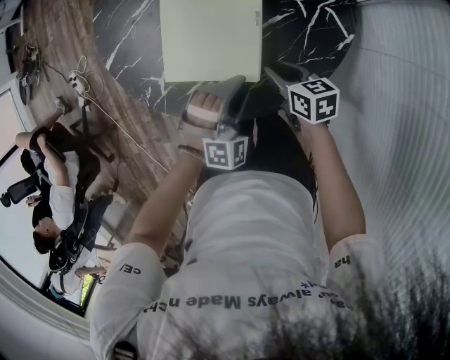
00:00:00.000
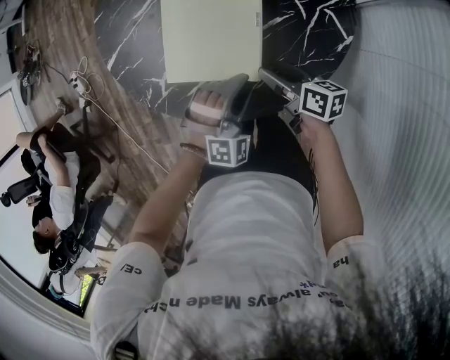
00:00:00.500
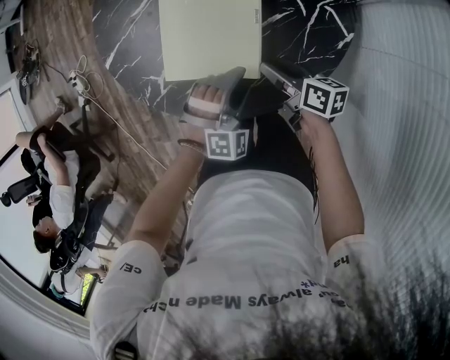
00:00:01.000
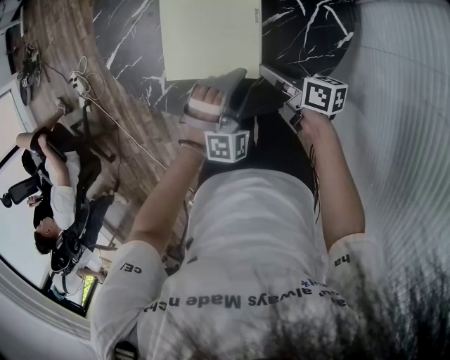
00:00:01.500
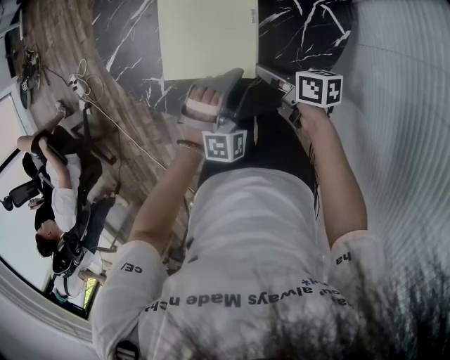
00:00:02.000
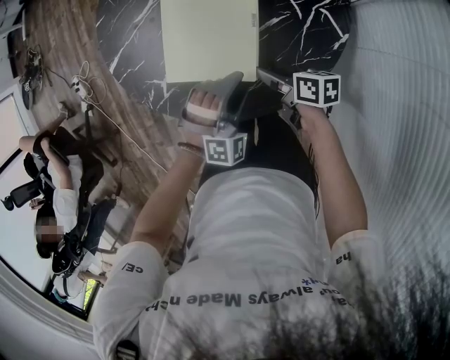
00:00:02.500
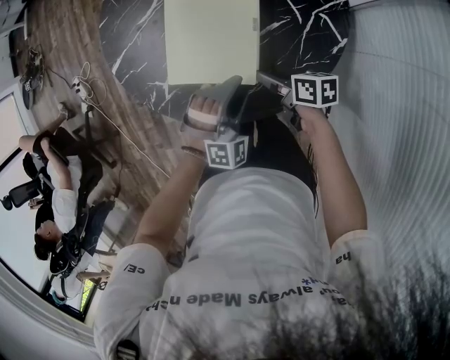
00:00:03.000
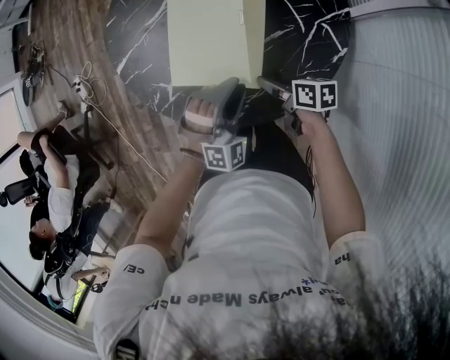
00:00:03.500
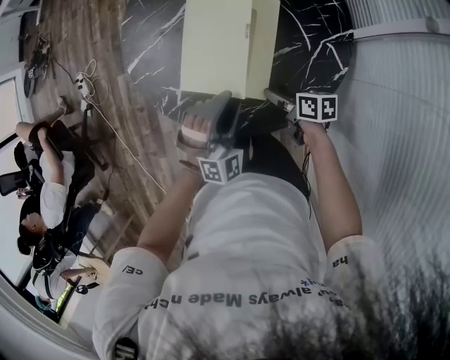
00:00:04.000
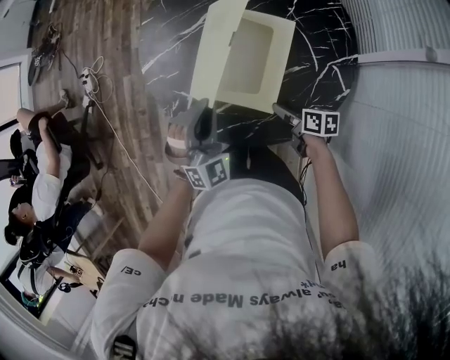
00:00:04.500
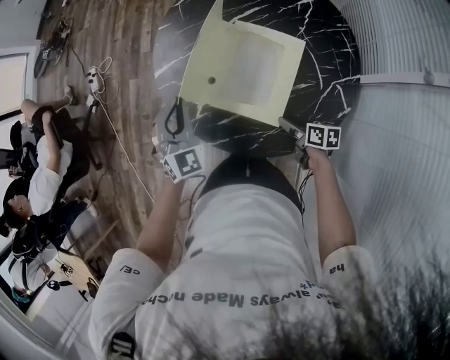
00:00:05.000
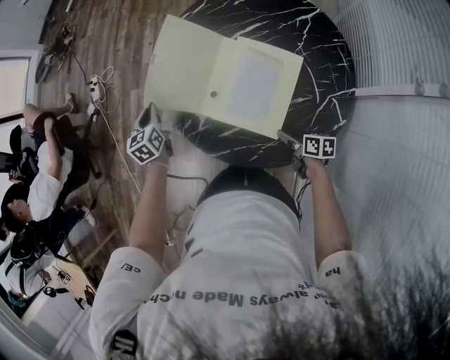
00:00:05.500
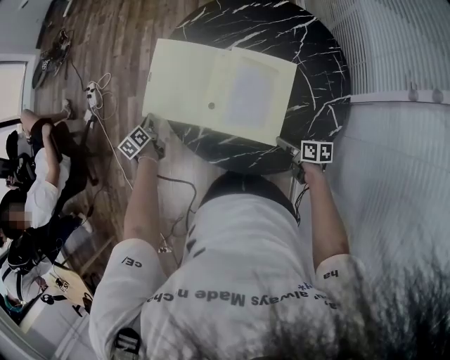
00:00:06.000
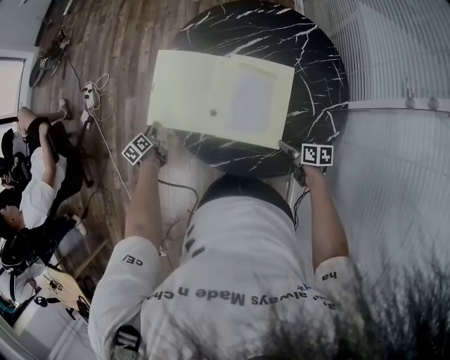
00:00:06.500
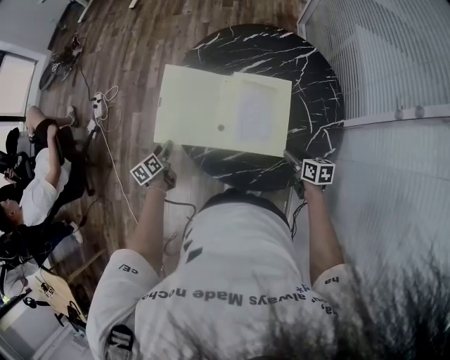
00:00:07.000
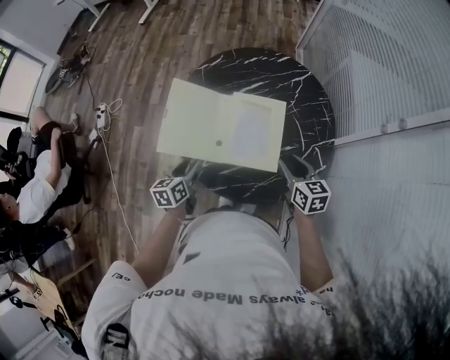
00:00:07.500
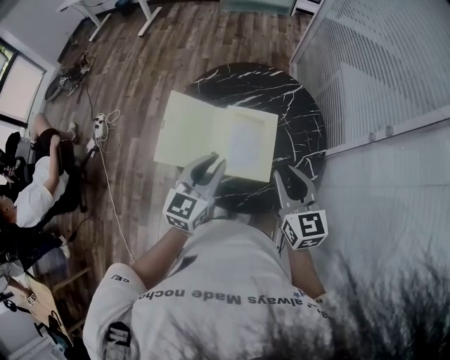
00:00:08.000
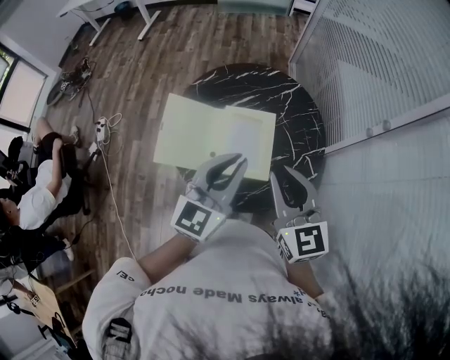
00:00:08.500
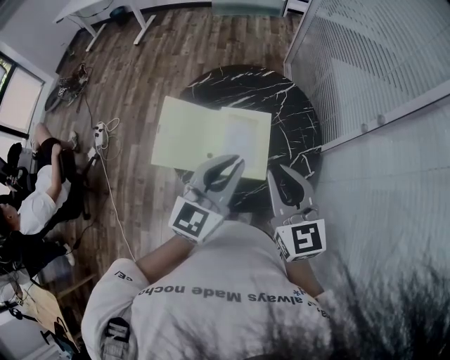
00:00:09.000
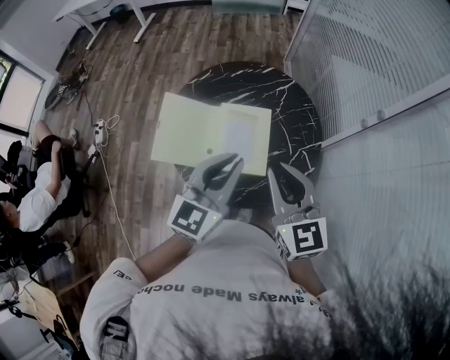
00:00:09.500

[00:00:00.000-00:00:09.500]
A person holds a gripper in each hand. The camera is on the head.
00:00:00.000 to 00:00:02.000: The right gripper opens its fingers.
00:00:02.000 to 00:00:04.000: The left gripper goes about 10 cm upward.
00:00:04.000 to 00:00:05.500: The left gripper is displaced to the left and forward by roughly 40 cm, rotates around the line of its fingers by roughly 80 degrees, counterclockwise from behind, and closes.
00:00:05.500 to 00:00:07.500: The right gripper travels upward by roughly 25 cm, swivels some 40 degrees, and closes its fingers. Meanwhile the left gripper moves some 15 cm downward and comes back, rotates roughly 30 degrees, and opens.
00:00:07.500 to 00:00:09.500: The left gripper moves upward and to the right, approximately 35 cm, turns by roughly 50 degrees, and closes, while the right gripper goes approximately 25 cm upward, turns by about 30 degrees, and closes.

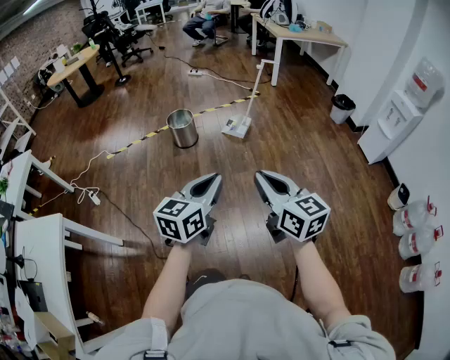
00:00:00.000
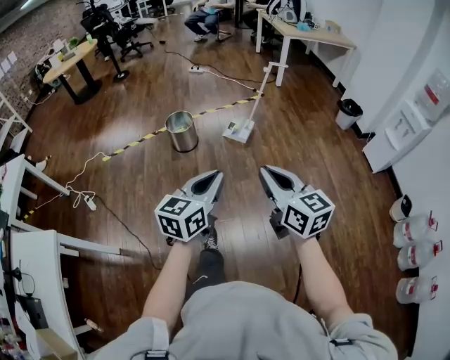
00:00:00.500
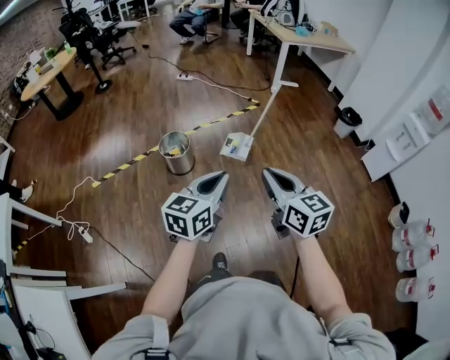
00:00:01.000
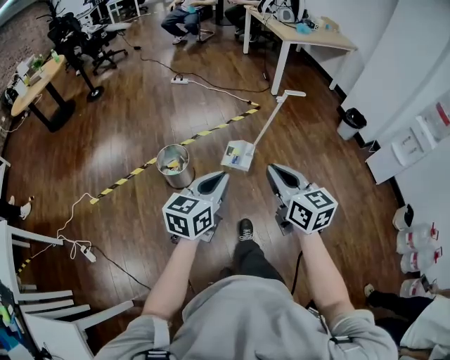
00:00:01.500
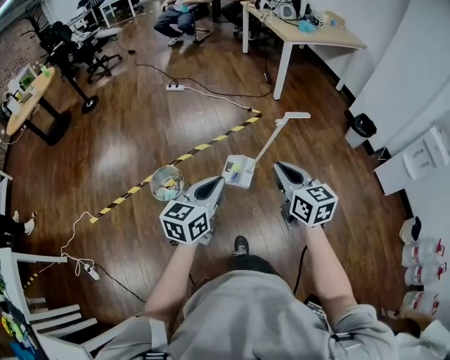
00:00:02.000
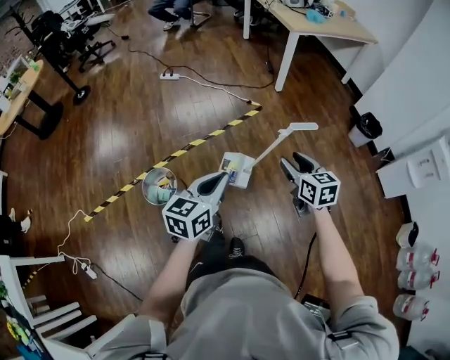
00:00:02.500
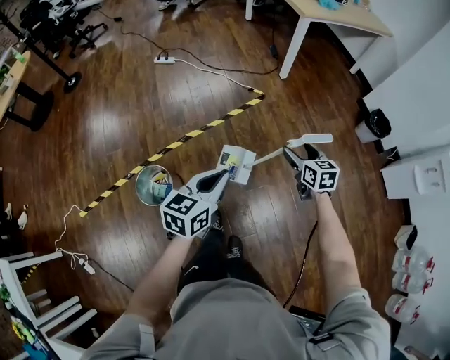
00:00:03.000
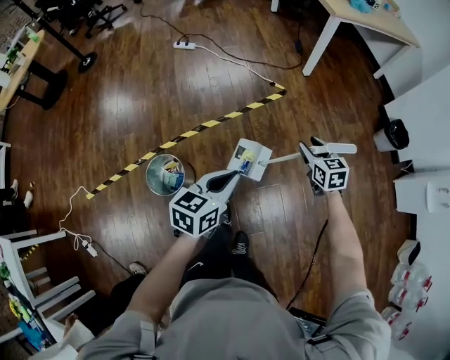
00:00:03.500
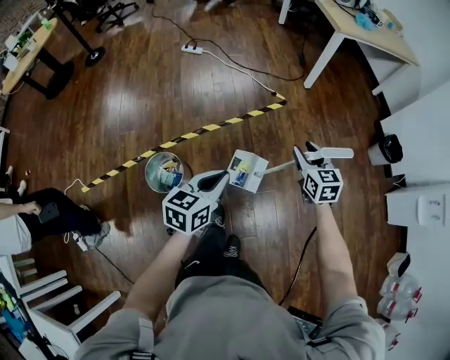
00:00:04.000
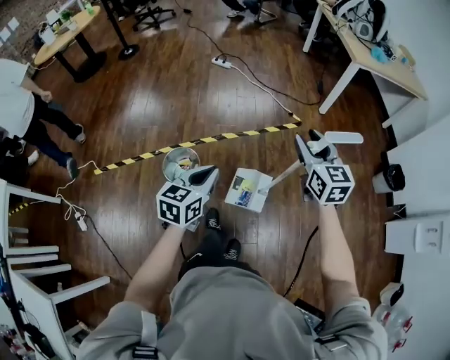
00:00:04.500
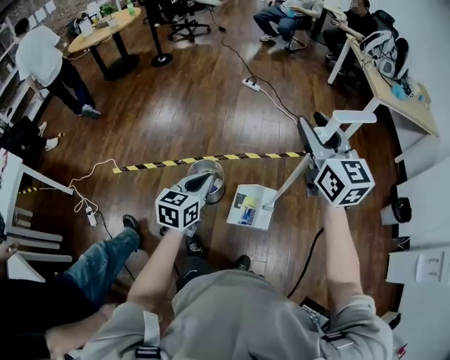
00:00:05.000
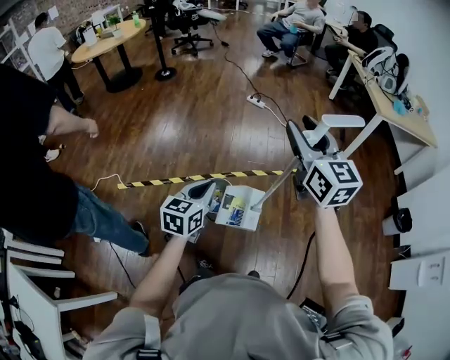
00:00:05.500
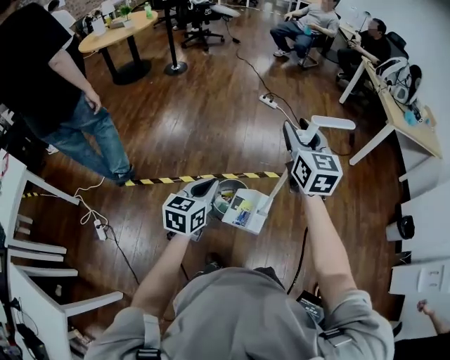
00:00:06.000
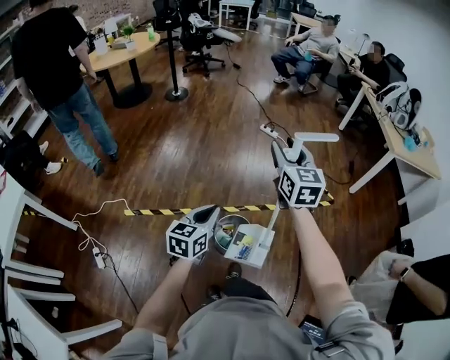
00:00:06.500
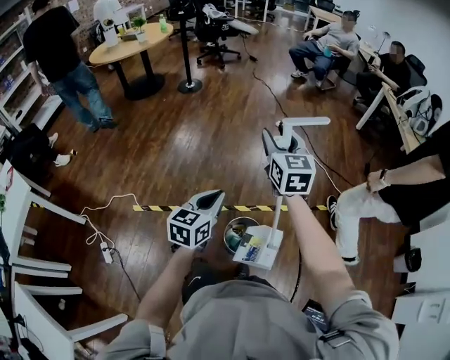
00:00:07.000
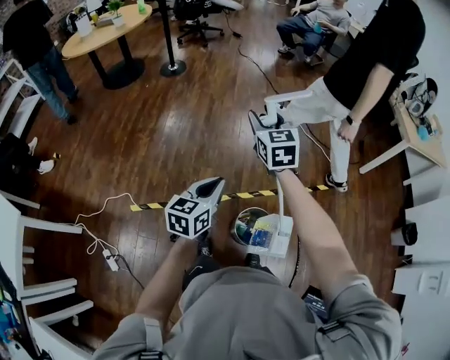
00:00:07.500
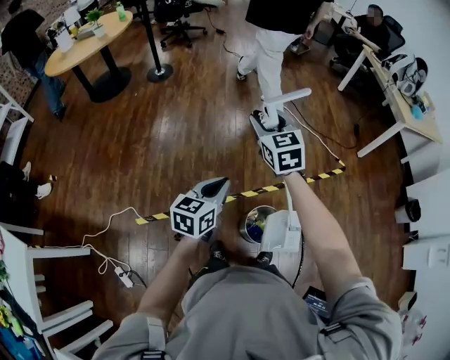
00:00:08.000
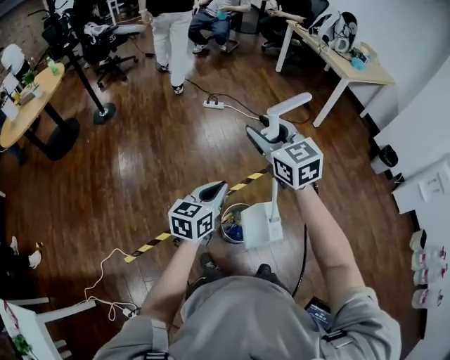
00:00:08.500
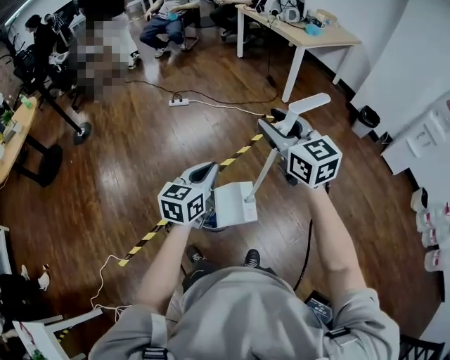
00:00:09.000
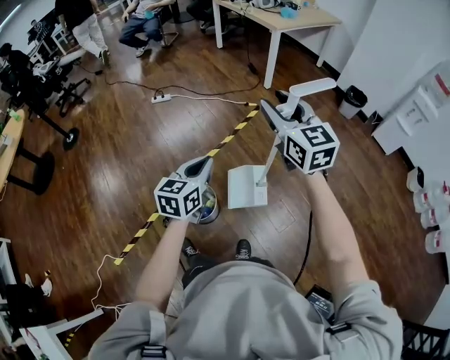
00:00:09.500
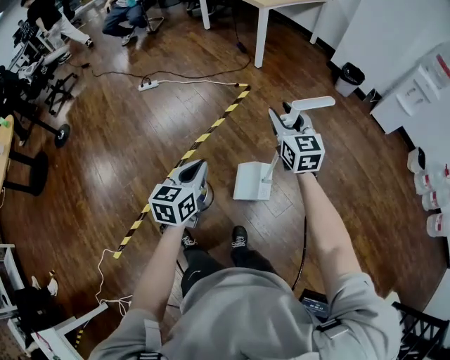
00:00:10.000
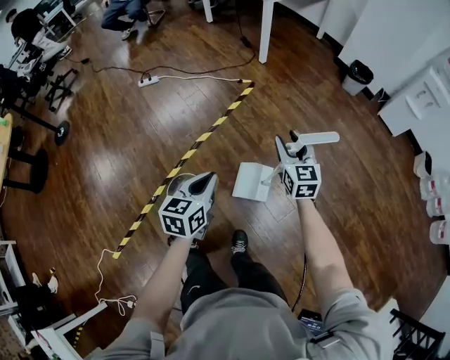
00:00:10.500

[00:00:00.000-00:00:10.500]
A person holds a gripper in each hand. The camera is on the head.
00:00:00.000 to 00:00:02.000: The two grippers travel together, forward, some 70 cm.
00:00:02.000 to 00:00:04.000: Both grippers travel together forward and downward, some 30 cm. The right gripper opens its fingers.
00:00:04.000 to 00:00:06.500: The pair of grippers is taken to the left, approximately 50 cm. The left gripper turns by approximately 30 degrees; the right gripper goes some 30 cm upward, and changes its angle by about 30 degrees.
00:00:06.500 to 00:00:08.500: The right gripper heads forward, covering roughly 5 cm, and goes to the left and returns, some 25 cm each way, while the left gripper is displaced forward by some 15 cm, goes to the left and returns, about 20 cm each way, and swivels some 30 degrees.
00:00:08.500 to 00:00:10.500: The right gripper heads to the right and downward, covering some 60 cm, and changes its angle by some 40 degrees. Meanwhile the left gripper shifts approximately 40 cm to the right.

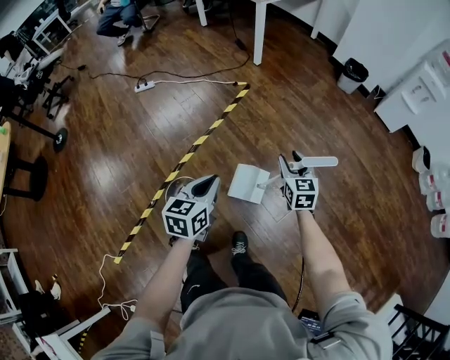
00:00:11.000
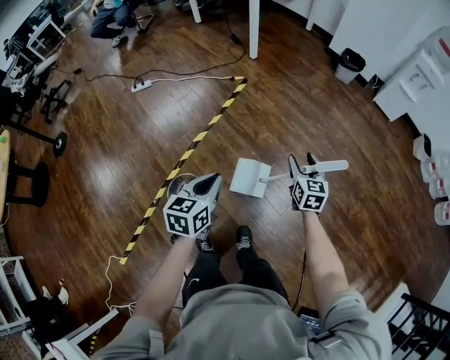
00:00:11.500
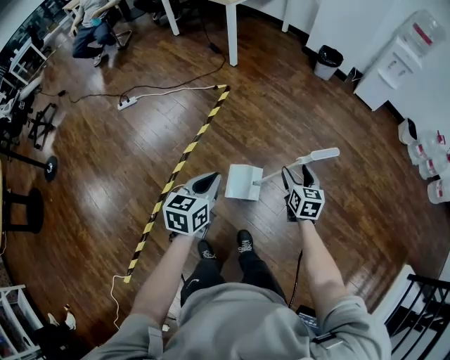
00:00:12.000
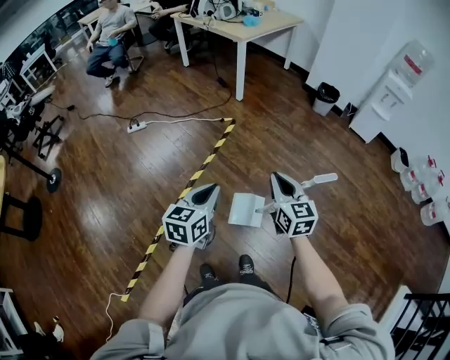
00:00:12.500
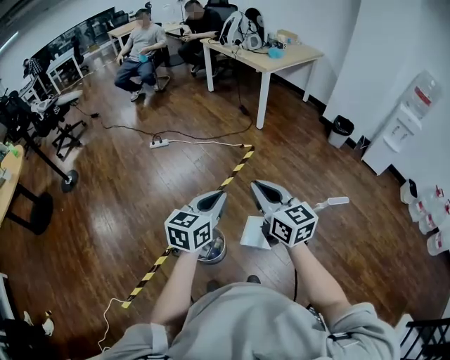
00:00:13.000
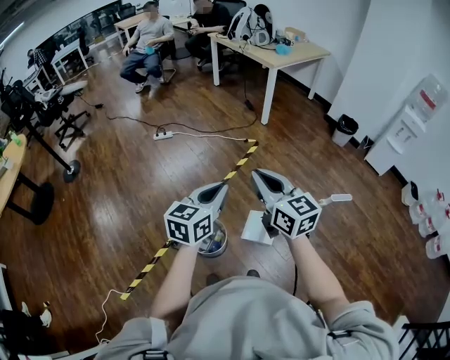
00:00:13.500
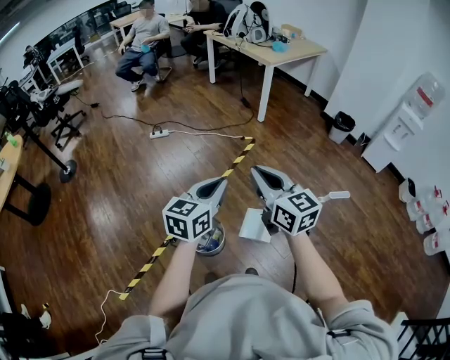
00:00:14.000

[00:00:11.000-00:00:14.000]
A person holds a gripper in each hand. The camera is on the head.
00:00:11.000 to 00:00:12.500: The right gripper moves upward, backward and to the left, some 20 cm, and closes. Meanwhile the left gripper is displaced upward and to the left by about 10 cm.
00:00:12.500 to 00:00:14.000: The left gripper goes some 10 cm upward and to the left; the right gripper goes roughly 20 cm to the left and upward, and swivels some 30 degrees.

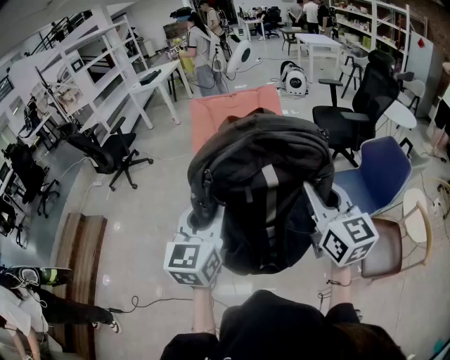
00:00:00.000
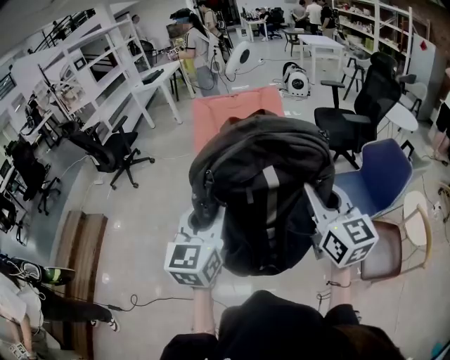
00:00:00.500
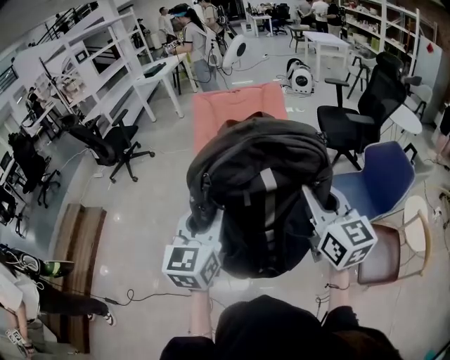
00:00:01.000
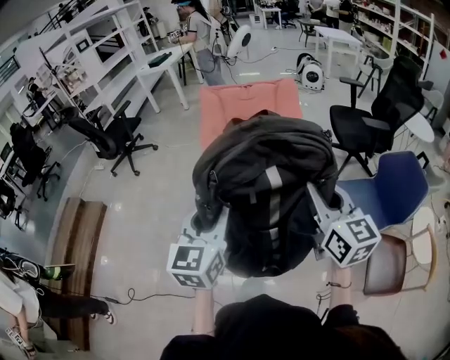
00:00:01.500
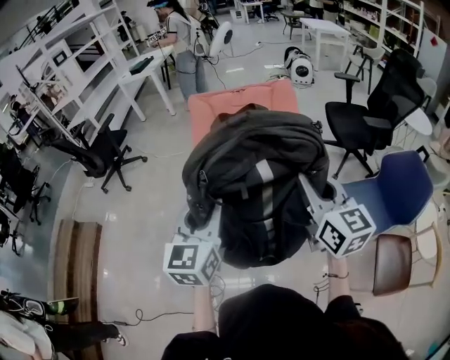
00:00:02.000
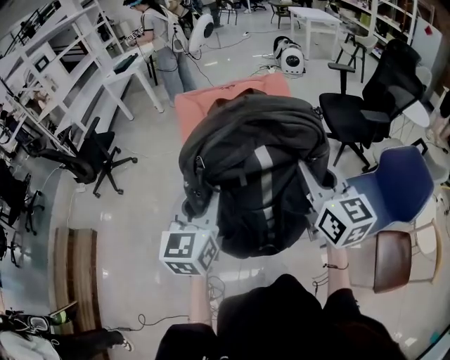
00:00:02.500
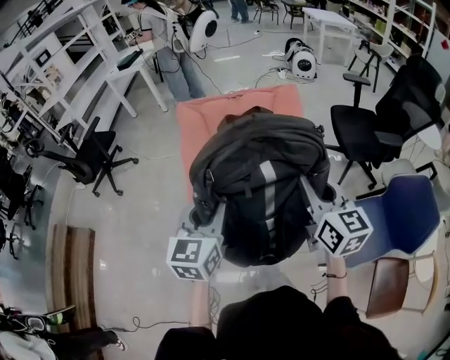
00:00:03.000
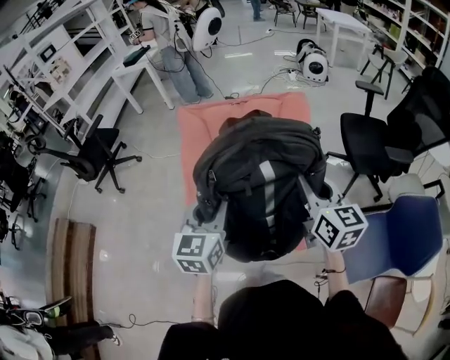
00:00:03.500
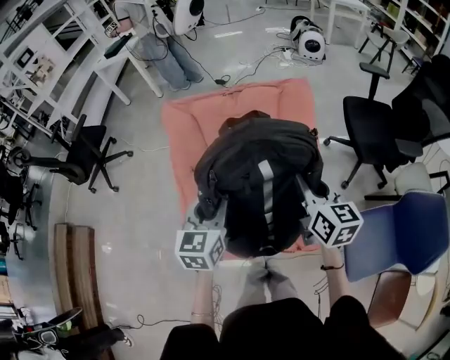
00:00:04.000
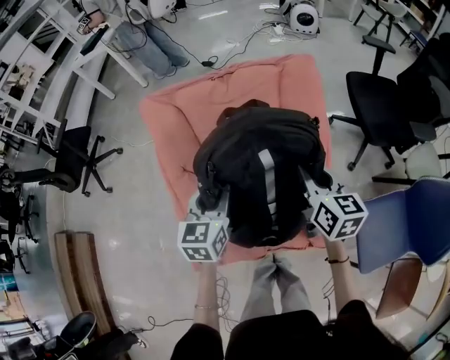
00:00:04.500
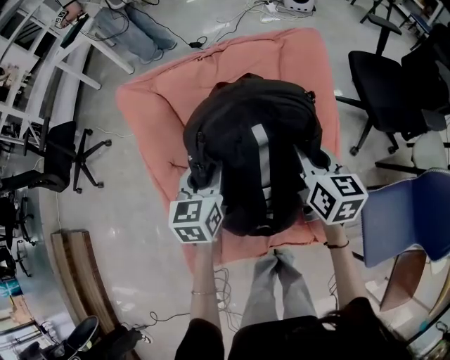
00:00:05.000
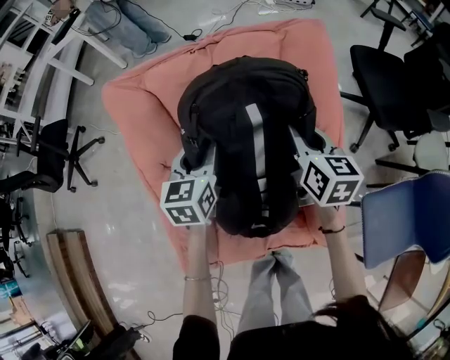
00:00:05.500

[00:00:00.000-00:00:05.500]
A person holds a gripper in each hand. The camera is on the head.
00:00:00.000 to 00:00:02.000: Both grippers travel together forward, approximately 25 cm.
00:00:02.000 to 00:00:03.500: The grippers both shift forward by some 30 cm.
00:00:03.500 to 00:00:05.500: The two grippers go about 40 cm forward and downward.
